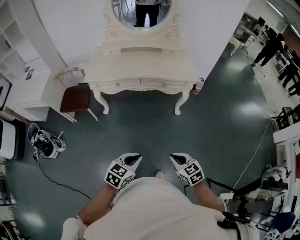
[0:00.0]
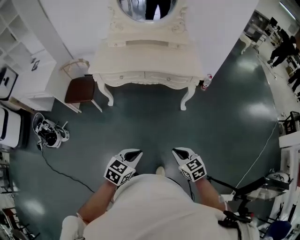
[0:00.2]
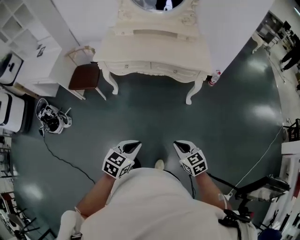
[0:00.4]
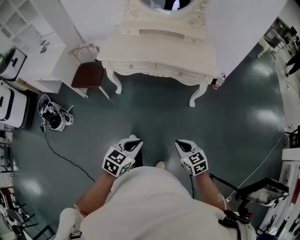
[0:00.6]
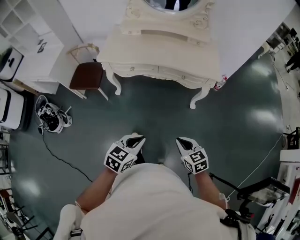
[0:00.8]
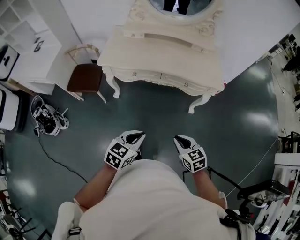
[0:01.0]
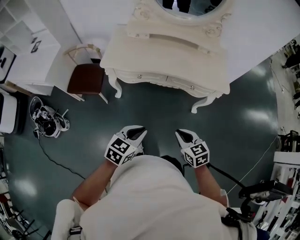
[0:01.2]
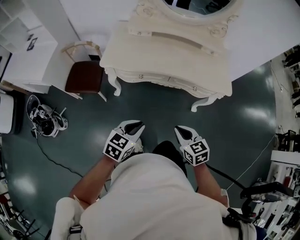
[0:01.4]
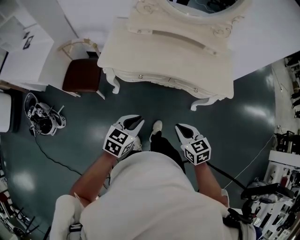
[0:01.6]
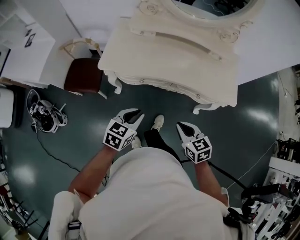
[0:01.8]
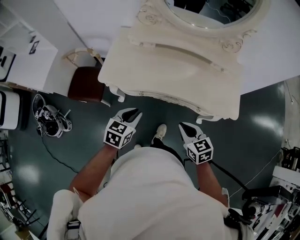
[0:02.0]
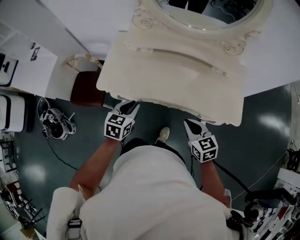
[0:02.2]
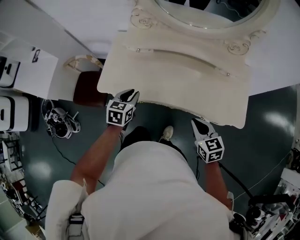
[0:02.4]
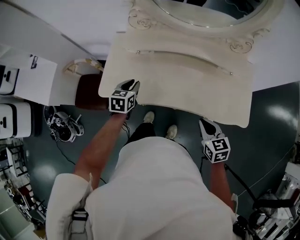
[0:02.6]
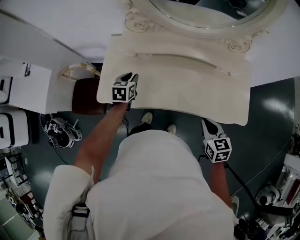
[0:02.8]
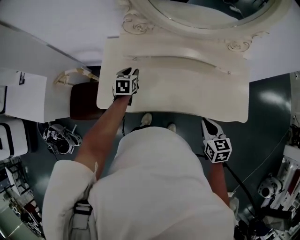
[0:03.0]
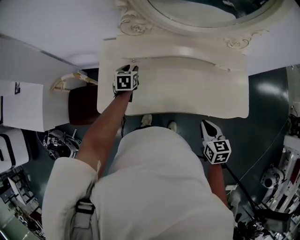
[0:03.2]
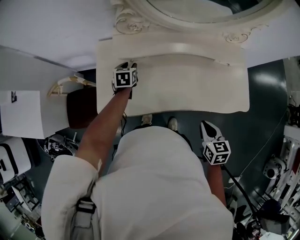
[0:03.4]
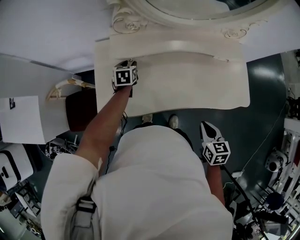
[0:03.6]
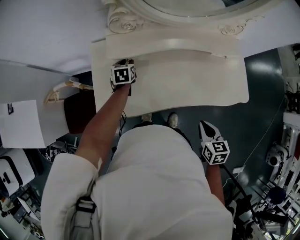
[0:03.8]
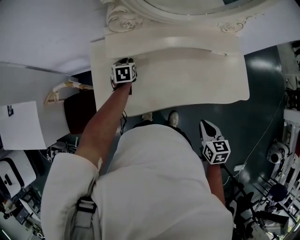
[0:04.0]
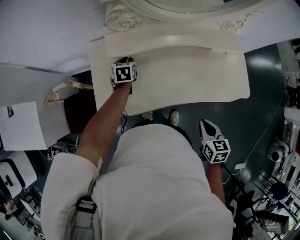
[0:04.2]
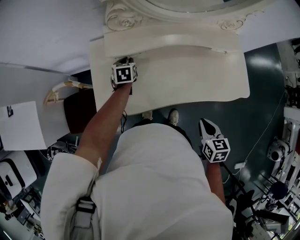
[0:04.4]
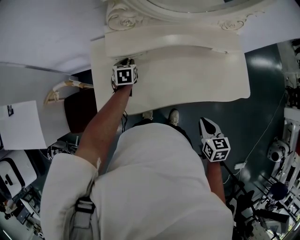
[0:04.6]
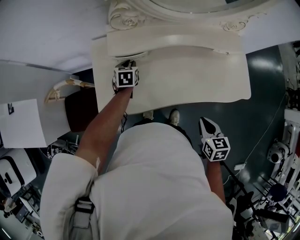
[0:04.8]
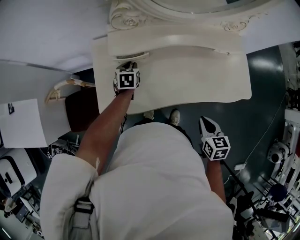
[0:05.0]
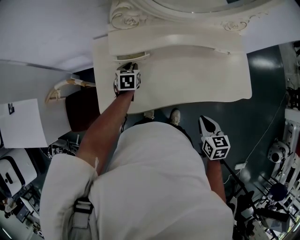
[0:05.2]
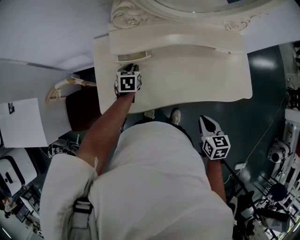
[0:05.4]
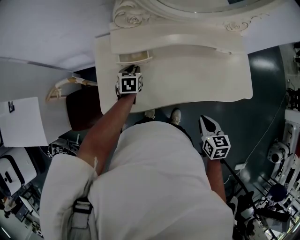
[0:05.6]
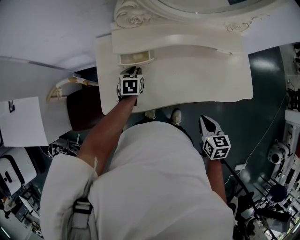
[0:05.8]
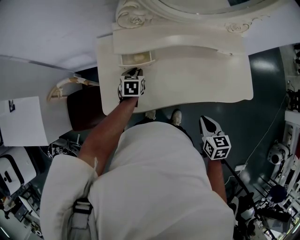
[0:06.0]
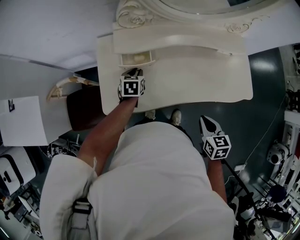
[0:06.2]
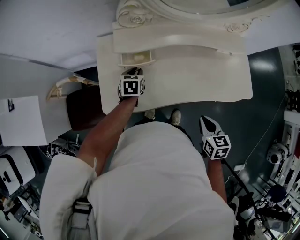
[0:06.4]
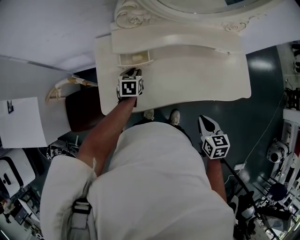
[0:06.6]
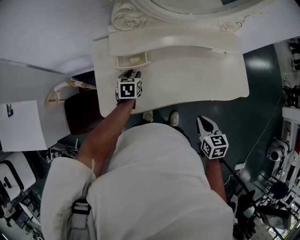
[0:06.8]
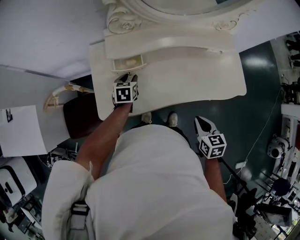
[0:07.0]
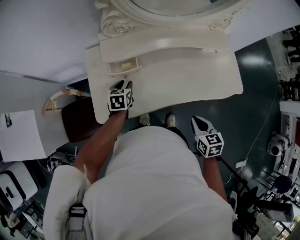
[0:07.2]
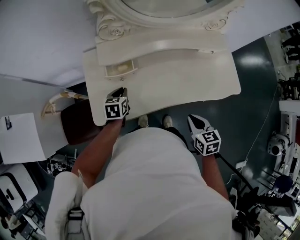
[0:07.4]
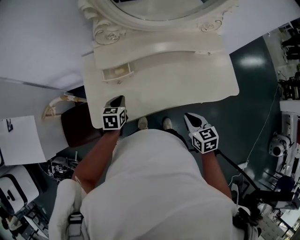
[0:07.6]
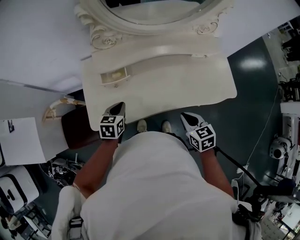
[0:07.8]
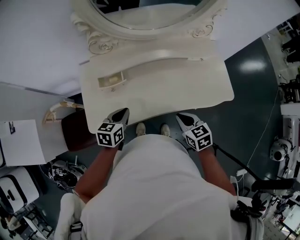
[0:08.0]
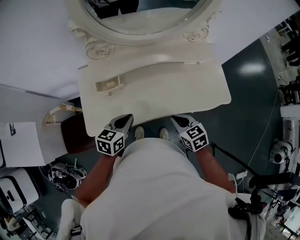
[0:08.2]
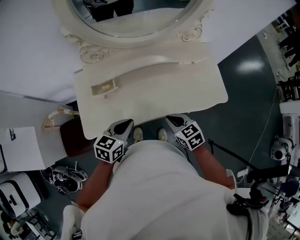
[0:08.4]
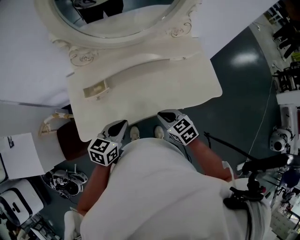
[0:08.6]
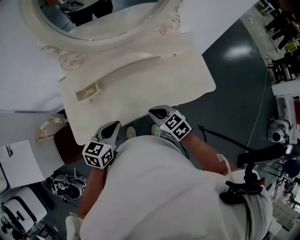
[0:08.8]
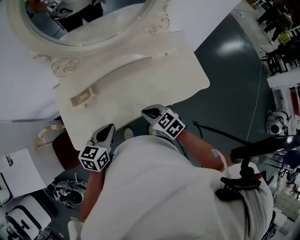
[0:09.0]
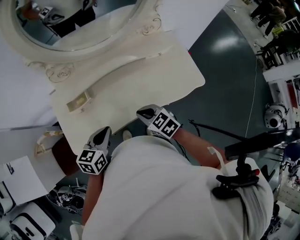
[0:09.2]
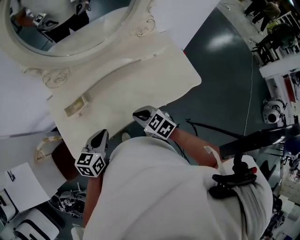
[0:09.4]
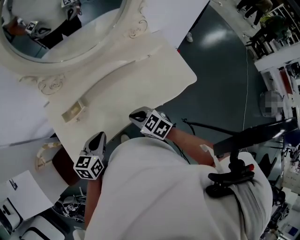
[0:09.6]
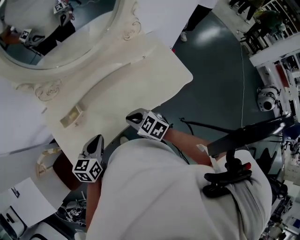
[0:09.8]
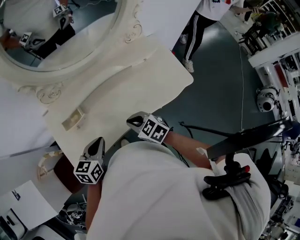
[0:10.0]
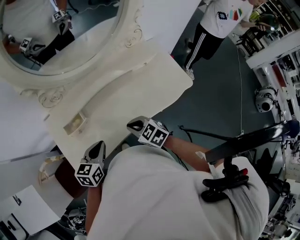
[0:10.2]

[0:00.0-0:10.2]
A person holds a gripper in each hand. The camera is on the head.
0:00.0 to 0:01.4: The two grippers go roughly 35 cm forward and to the left.
0:01.4 to 0:03.0: The left gripper shifts about 60 cm forward, and turns by some 30 degrees, while the right gripper is displaced forward by approximately 35 cm.
0:03.0 to 0:04.4: The right gripper is displaced to the left by roughly 5 cm; the left gripper goes roughly 5 cm forward.
0:04.4 to 0:05.8: The left gripper heads backward, covering about 5 cm.
0:05.8 to 0:07.2: The grippers make only small movements.
0:07.2 to 0:08.8: The left gripper is displaced to the right, upward and backward by roughly 25 cm, changes its angle by some 30 degrees, and closes up; the right gripper shifts approximately 5 cm forward, and swivels about 30 degrees.
0:08.8 to 0:10.2: The left gripper shifts by roughly 5 cm.

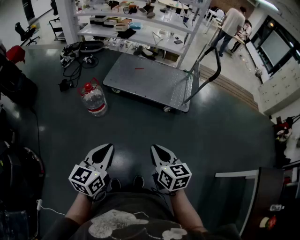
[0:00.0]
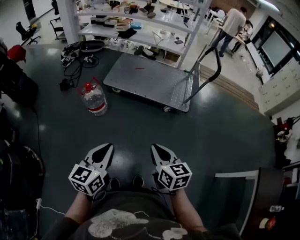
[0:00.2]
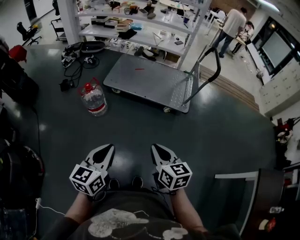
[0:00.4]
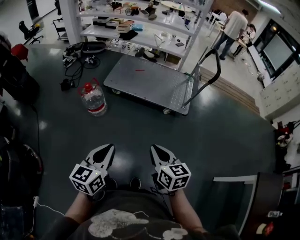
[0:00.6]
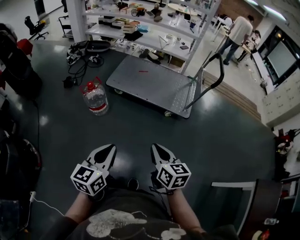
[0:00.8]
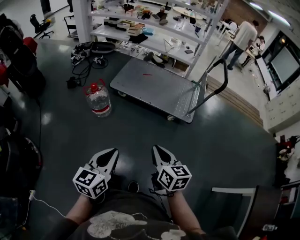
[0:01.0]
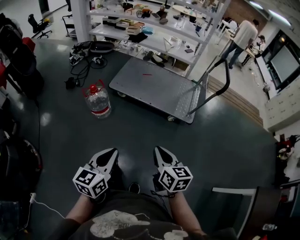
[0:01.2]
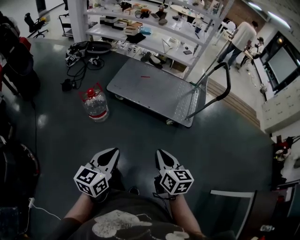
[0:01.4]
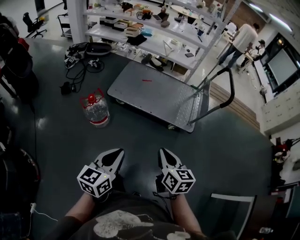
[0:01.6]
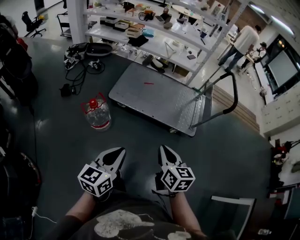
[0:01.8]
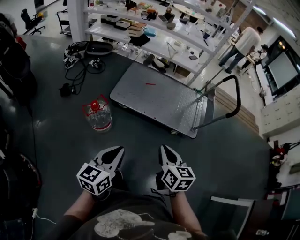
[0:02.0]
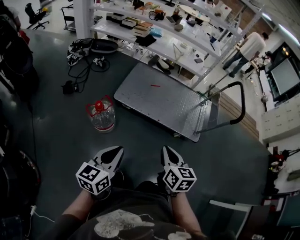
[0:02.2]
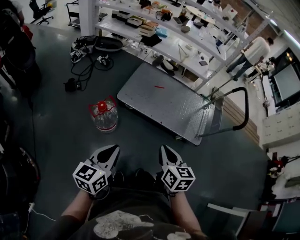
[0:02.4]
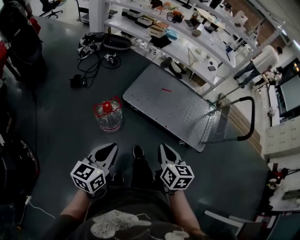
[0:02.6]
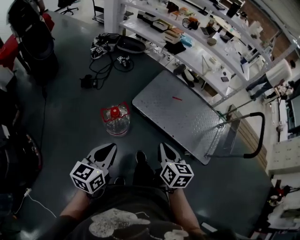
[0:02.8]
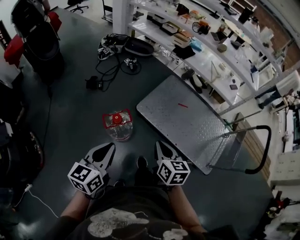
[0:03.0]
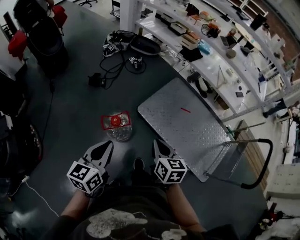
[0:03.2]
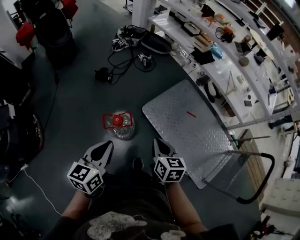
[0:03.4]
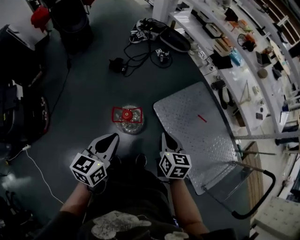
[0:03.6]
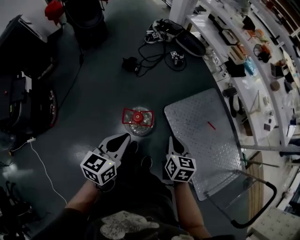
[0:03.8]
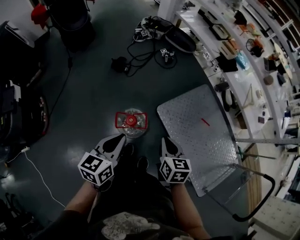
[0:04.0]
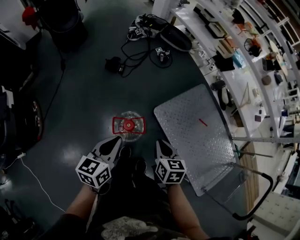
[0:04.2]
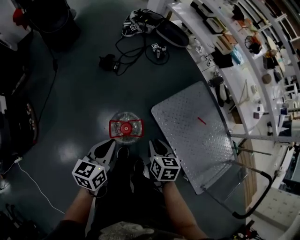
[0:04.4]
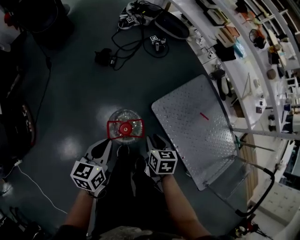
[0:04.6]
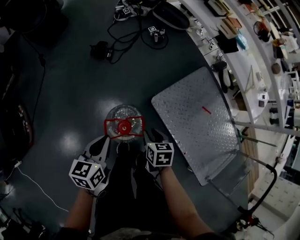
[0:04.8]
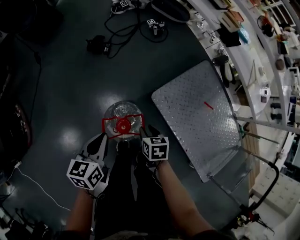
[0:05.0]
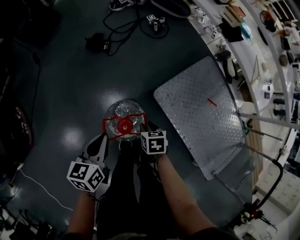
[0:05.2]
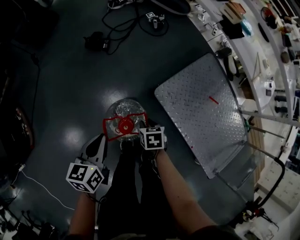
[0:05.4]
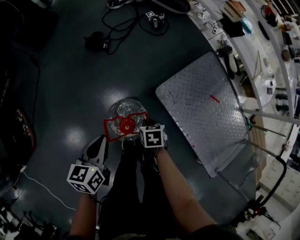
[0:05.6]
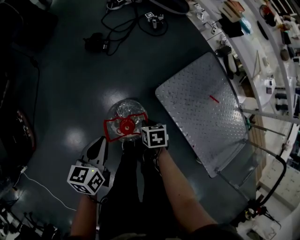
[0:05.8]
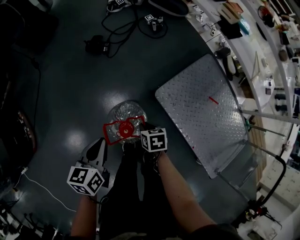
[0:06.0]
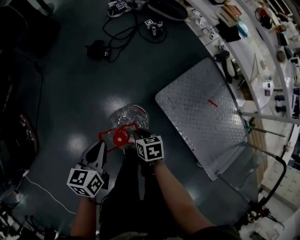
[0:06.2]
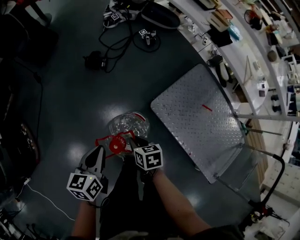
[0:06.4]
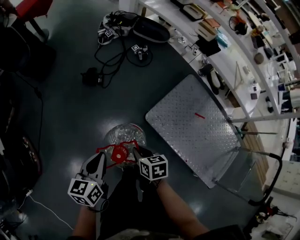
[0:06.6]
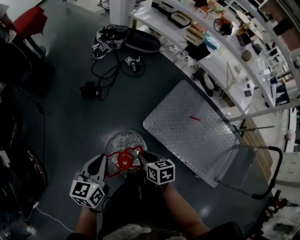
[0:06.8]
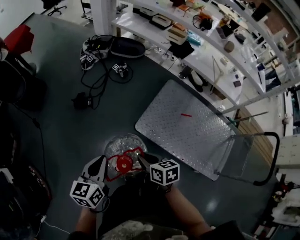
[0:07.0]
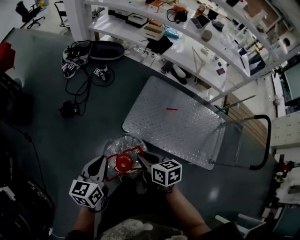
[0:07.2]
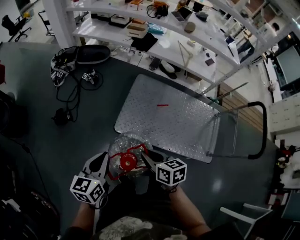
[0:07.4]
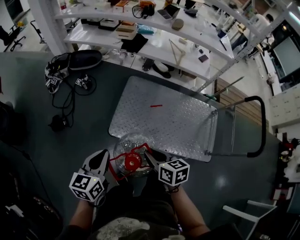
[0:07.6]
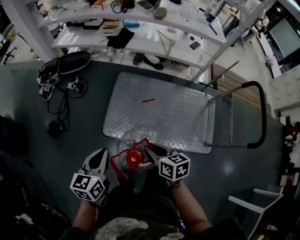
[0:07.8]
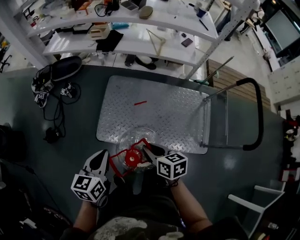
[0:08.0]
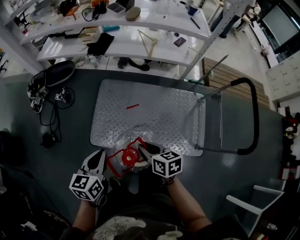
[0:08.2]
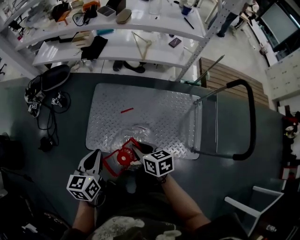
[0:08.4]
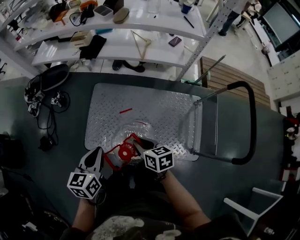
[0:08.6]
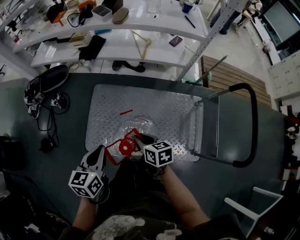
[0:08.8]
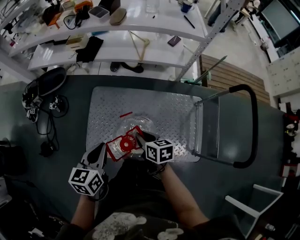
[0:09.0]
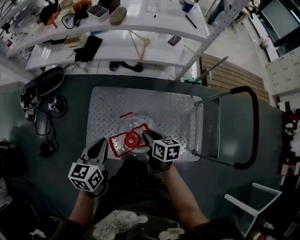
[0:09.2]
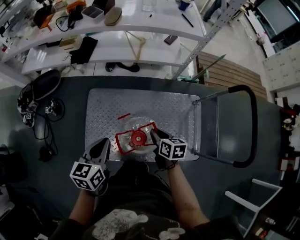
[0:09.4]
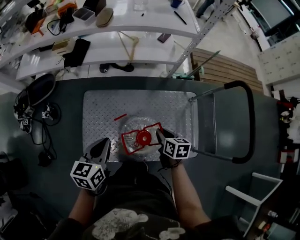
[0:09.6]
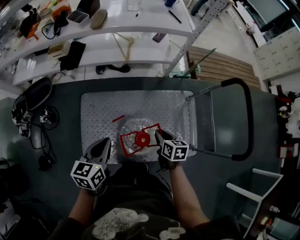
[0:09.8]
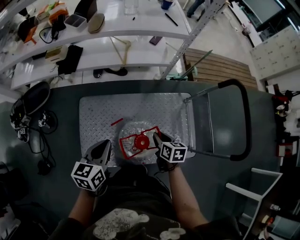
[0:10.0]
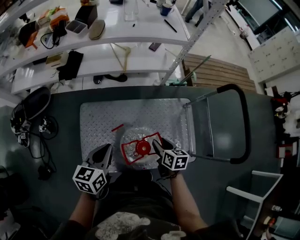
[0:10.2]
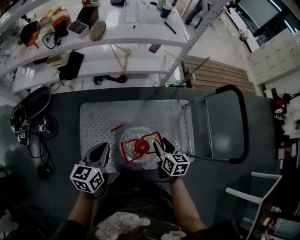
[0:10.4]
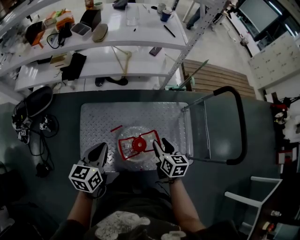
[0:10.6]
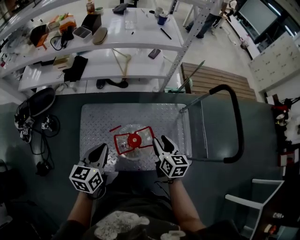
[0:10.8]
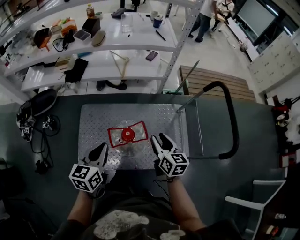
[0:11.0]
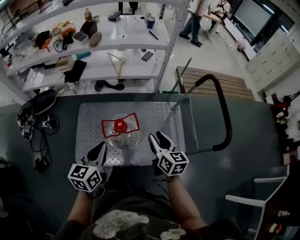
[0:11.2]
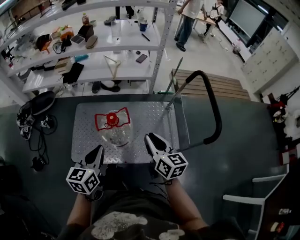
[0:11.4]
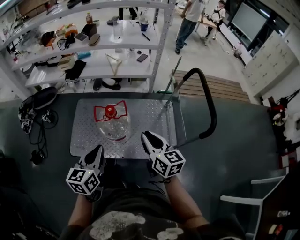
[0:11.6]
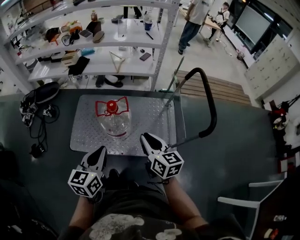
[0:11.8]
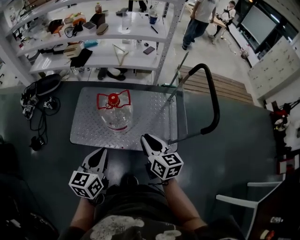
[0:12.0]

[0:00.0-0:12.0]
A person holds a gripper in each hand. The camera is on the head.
0:00.0 to 0:01.6: Both grippers move forward, roughly 15 cm.
0:01.6 to 0:03.0: The grippers both shift forward and to the left by roughly 40 cm. The left gripper turns by approximately 20 degrees. The right gripper swivels roughly 20 degrees.
0:03.0 to 0:04.4: The right gripper is displaced forward, downward and to the left by approximately 30 cm, and rotates roughly 20 degrees, while the left gripper goes about 25 cm forward and downward, and changes its angle by some 20 degrees.
0:04.4 to 0:06.0: The left gripper heads downward, covering about 15 cm. The right gripper heads downward, covering about 20 cm, and swivels approximately 20 degrees.
0:06.0 to 0:07.6: The left gripper changes place by approximately 35 cm, and turns by approximately 40 degrees; the right gripper moves upward, some 30 cm, and swivels roughly 50 degrees.
0:07.6 to 0:09.0: The grippers both shift to the right and forward by about 35 cm.
0:09.0 to 0:10.4: The left gripper is displaced forward by approximately 10 cm, while the right gripper moves to the right, roughly 10 cm, turns by approximately 30 degrees, and opens up.
0:10.4 to 0:12.0: The right gripper moves backward and upward, roughly 30 cm, swivels some 30 degrees, and closes its fingers. The left gripper is displaced backward and to the right by approximately 40 cm.

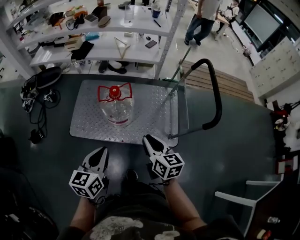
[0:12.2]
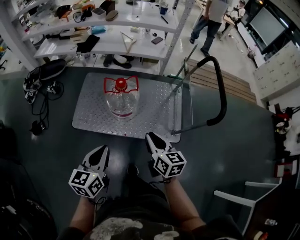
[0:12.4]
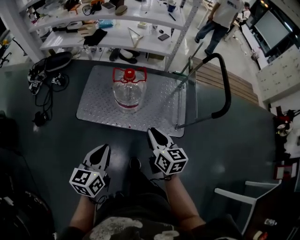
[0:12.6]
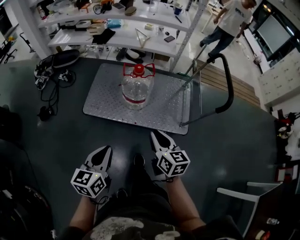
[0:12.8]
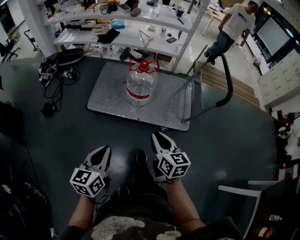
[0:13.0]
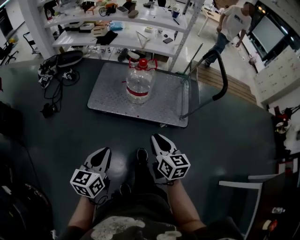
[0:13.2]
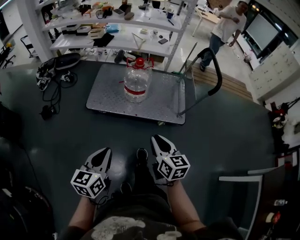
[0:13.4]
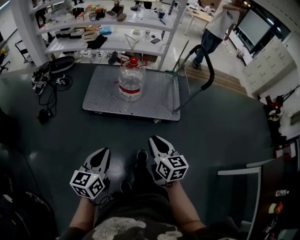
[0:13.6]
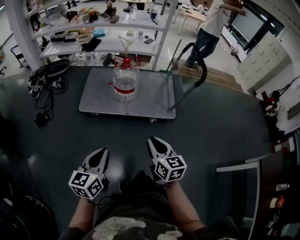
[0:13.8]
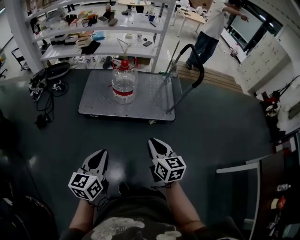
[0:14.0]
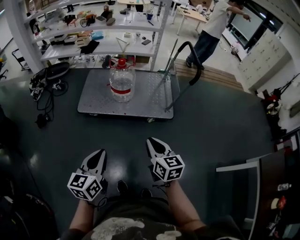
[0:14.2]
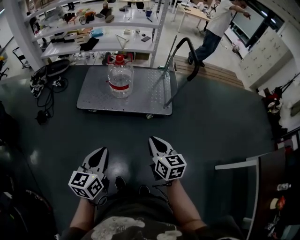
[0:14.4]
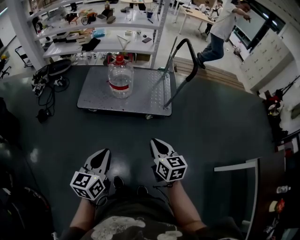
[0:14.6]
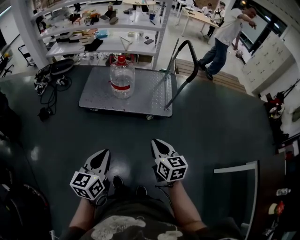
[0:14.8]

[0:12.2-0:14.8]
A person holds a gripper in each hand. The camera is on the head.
0:12.2 to 0:13.4: Both grippers move backward, about 35 cm.
0:13.4 to 0:14.8: The grippers both shift to the right and backward by some 20 cm.
